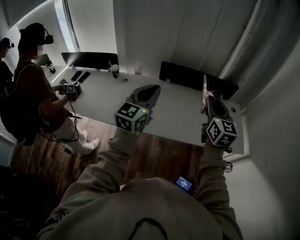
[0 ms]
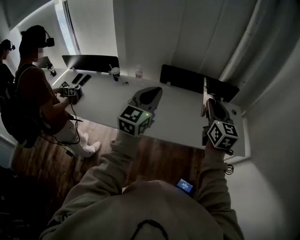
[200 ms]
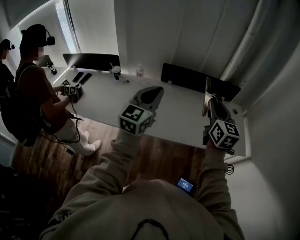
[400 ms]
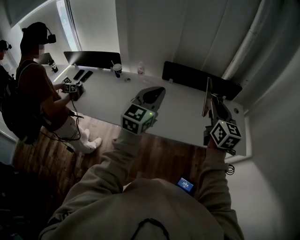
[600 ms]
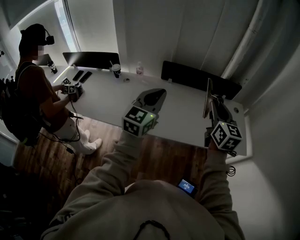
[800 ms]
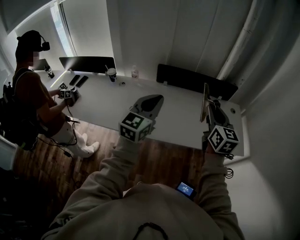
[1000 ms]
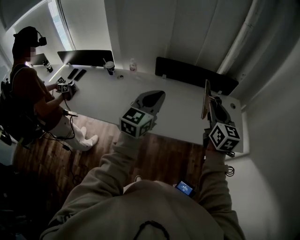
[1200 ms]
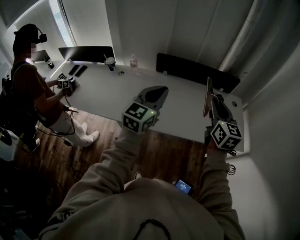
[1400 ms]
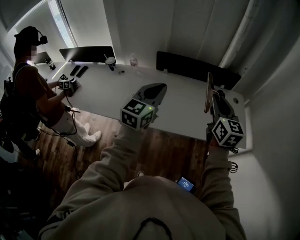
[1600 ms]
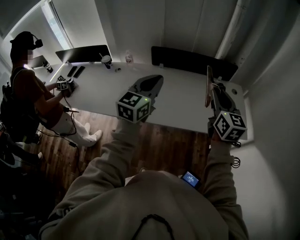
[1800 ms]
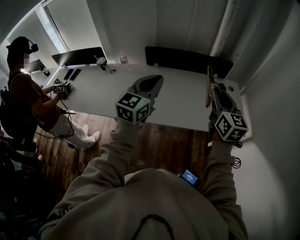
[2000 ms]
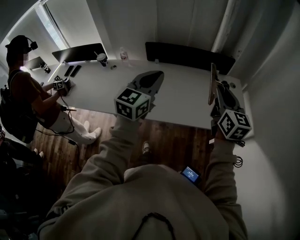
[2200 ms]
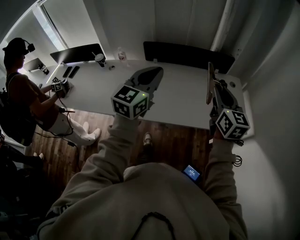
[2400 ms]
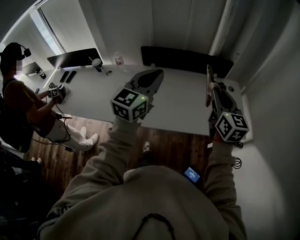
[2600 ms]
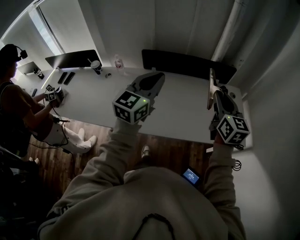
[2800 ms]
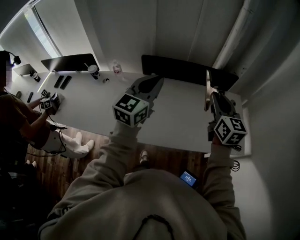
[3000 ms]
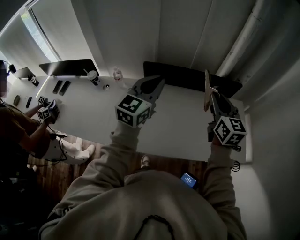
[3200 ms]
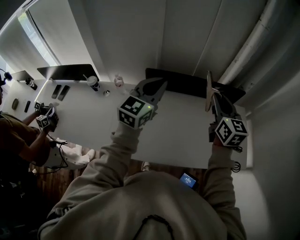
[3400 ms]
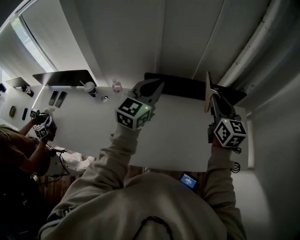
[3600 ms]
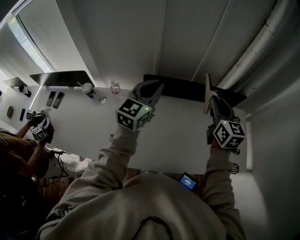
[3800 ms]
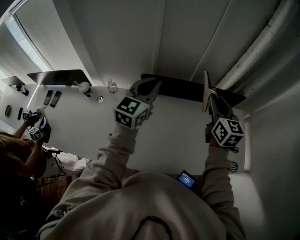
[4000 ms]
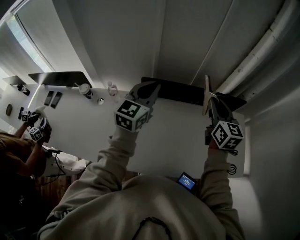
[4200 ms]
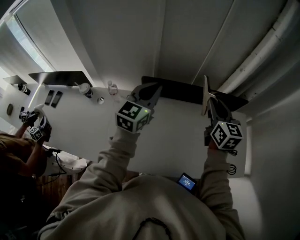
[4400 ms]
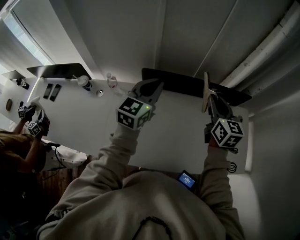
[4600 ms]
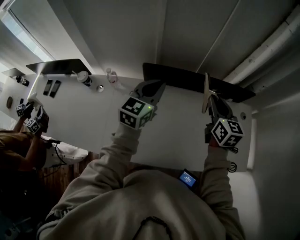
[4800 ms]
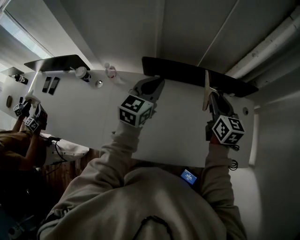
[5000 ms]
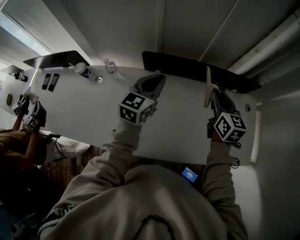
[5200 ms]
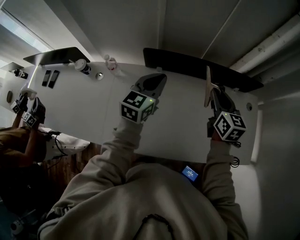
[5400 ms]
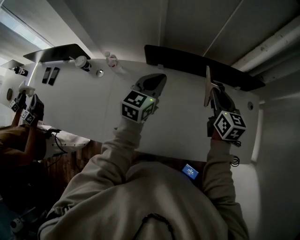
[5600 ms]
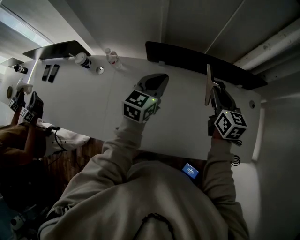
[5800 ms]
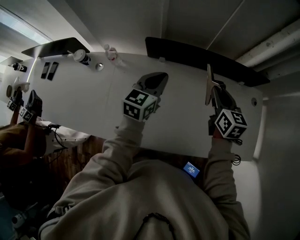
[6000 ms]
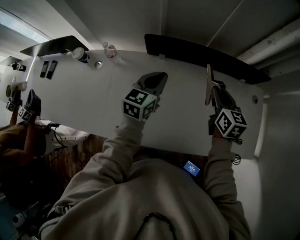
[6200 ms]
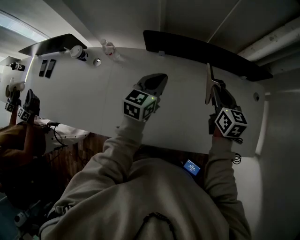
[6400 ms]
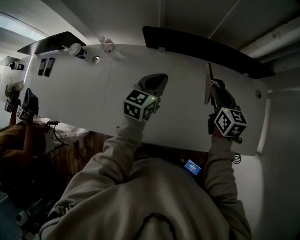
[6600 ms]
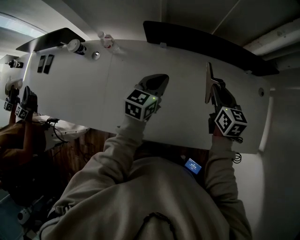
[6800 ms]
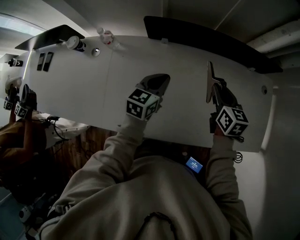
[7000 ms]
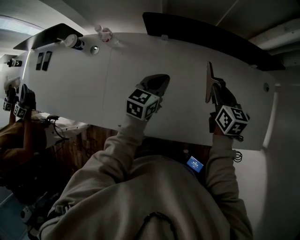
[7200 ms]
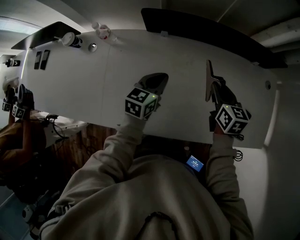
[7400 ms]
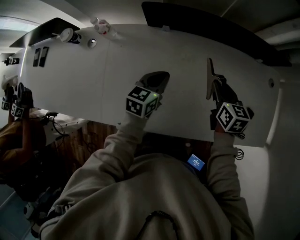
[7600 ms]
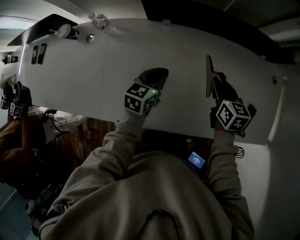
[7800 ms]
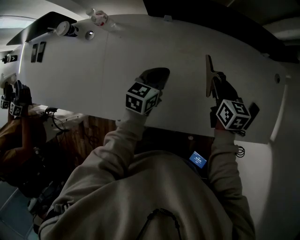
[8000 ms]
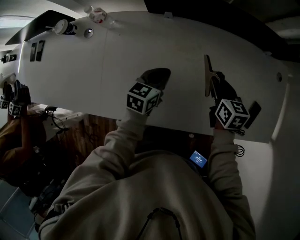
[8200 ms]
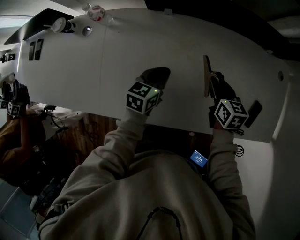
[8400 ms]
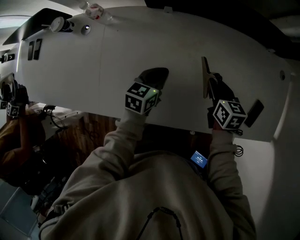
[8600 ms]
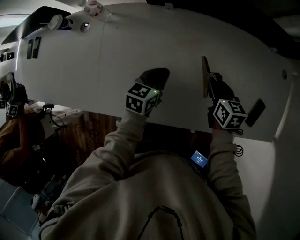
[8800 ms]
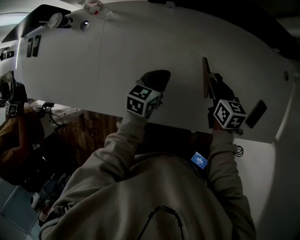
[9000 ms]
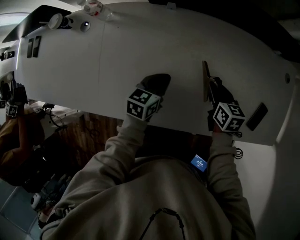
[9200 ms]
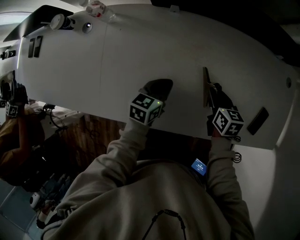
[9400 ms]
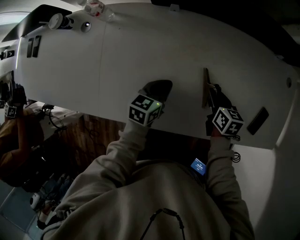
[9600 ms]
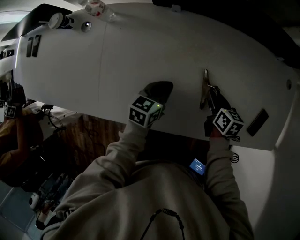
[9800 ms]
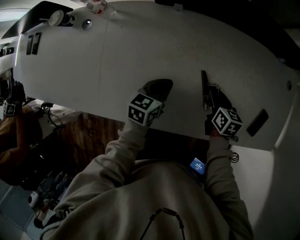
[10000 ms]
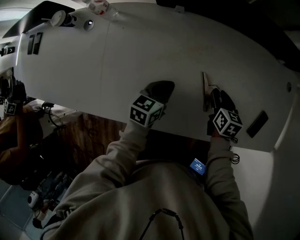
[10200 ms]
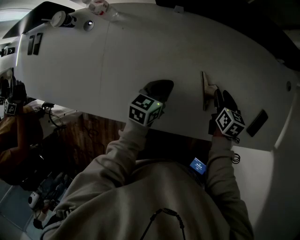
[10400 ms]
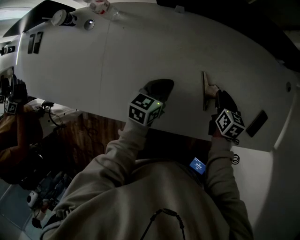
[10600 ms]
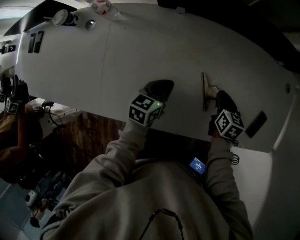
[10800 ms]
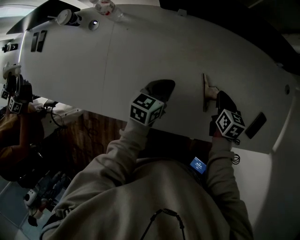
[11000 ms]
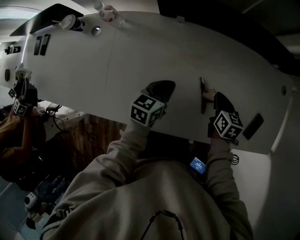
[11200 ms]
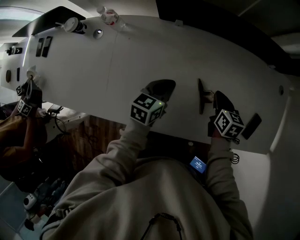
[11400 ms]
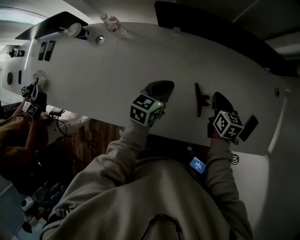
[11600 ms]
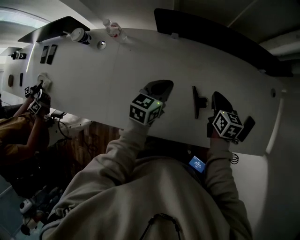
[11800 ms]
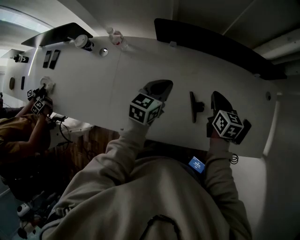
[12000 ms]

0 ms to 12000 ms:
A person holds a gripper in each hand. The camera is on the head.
0 ms to 1600 ms: The grippers both shift to the right by some 10 cm.
1600 ms to 3000 ms: The two grippers go roughly 15 cm forward.
3000 ms to 4400 ms: Both grippers travel together forward and to the left, some 25 cm.
4400 ms to 6000 ms: The two grippers go approximately 15 cm downward.
6000 ms to 7600 ms: The two grippers go approximately 15 cm downward.
7600 ms to 9000 ms: Both grippers move downward, about 10 cm.
9000 ms to 10400 ms: The right gripper changes place by some 5 cm.
10400 ms to 12000 ms: The two grippers go some 15 cm upward. The right gripper closes its fingers.

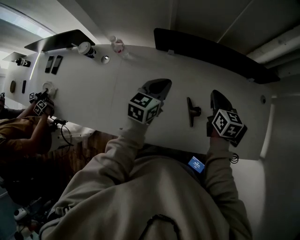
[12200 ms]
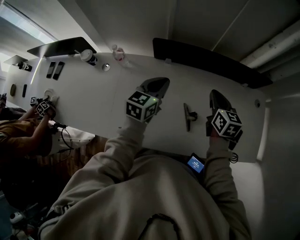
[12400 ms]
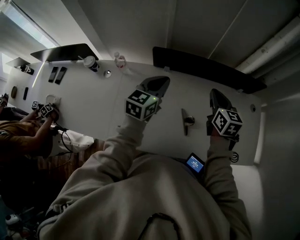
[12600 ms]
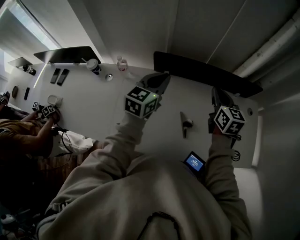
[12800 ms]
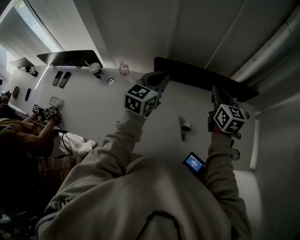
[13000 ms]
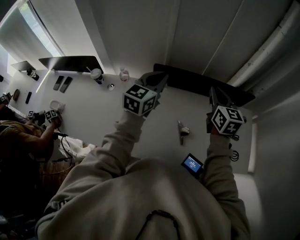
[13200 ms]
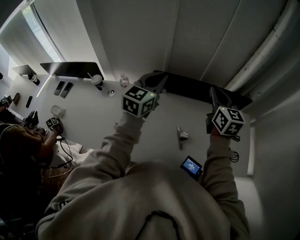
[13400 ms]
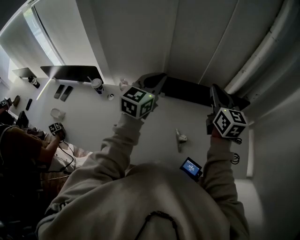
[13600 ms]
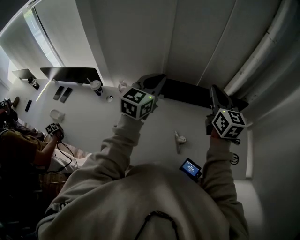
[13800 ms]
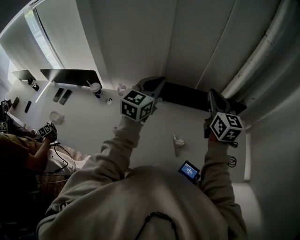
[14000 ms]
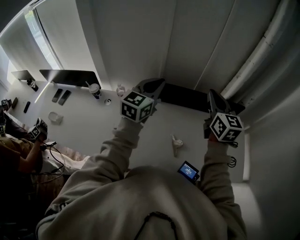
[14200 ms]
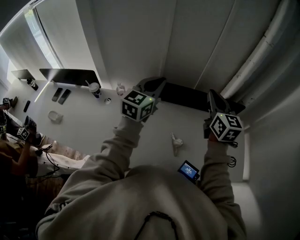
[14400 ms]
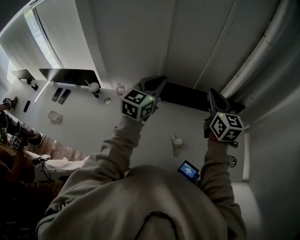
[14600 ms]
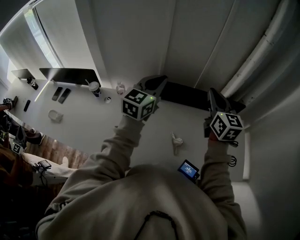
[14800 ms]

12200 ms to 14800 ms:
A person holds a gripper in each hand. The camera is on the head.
12200 ms to 13400 ms: Both grippers move upward, about 25 cm. The left gripper rotates some 20 degrees; the right gripper swivels some 30 degrees.
13400 ms to 14800 ms: The right gripper goes about 5 cm upward.

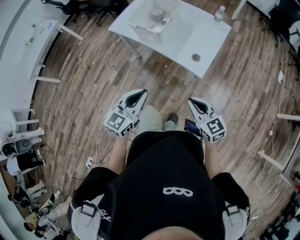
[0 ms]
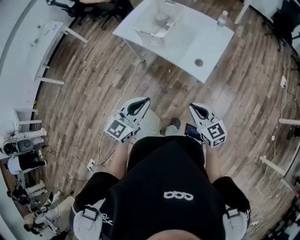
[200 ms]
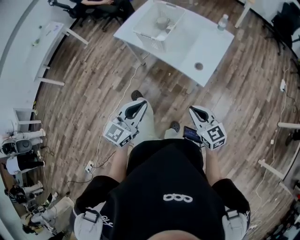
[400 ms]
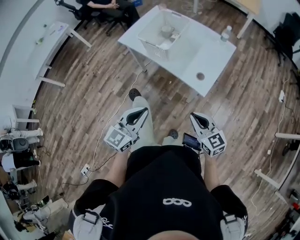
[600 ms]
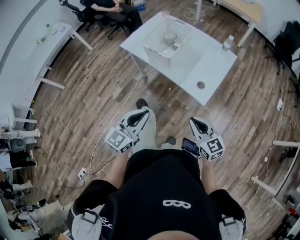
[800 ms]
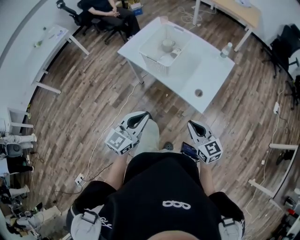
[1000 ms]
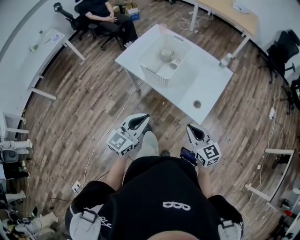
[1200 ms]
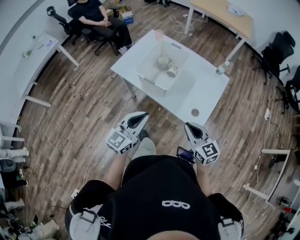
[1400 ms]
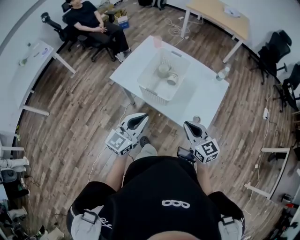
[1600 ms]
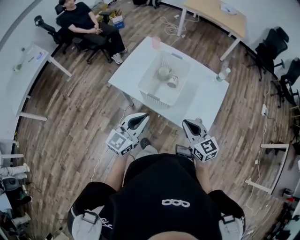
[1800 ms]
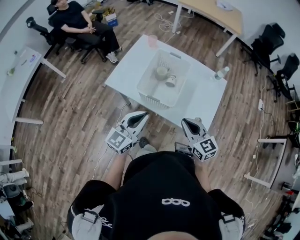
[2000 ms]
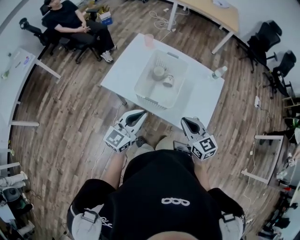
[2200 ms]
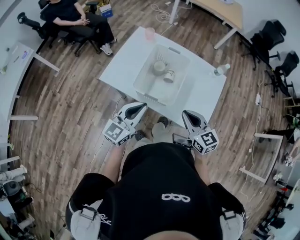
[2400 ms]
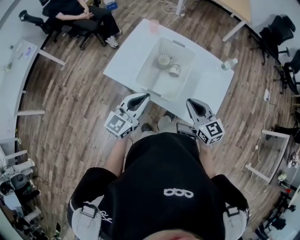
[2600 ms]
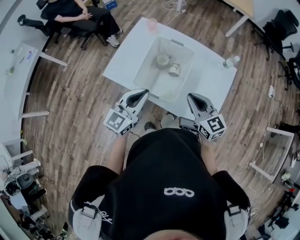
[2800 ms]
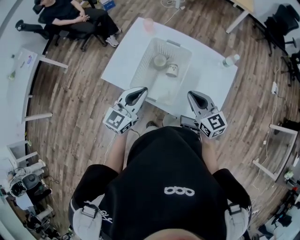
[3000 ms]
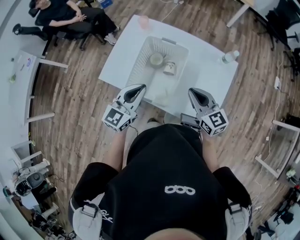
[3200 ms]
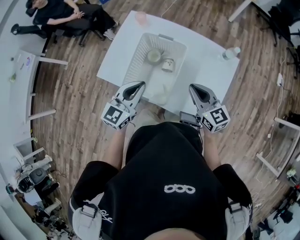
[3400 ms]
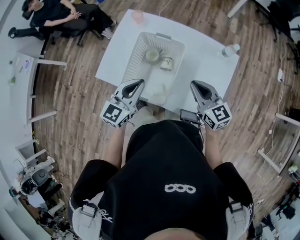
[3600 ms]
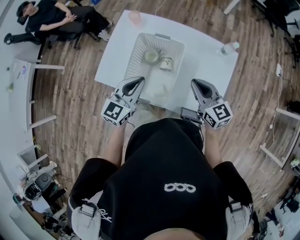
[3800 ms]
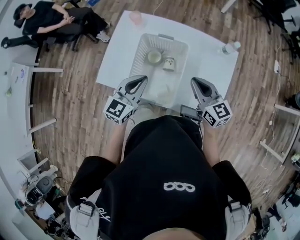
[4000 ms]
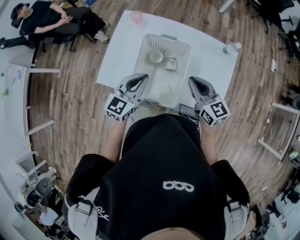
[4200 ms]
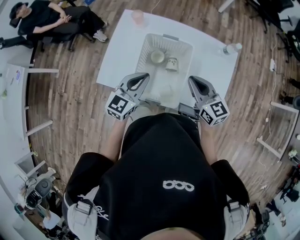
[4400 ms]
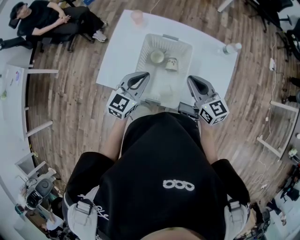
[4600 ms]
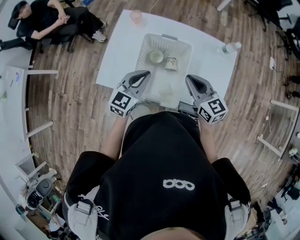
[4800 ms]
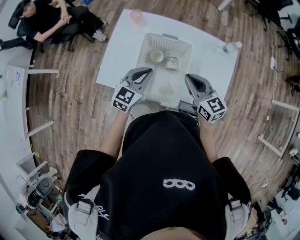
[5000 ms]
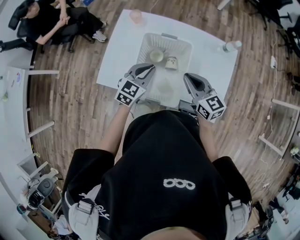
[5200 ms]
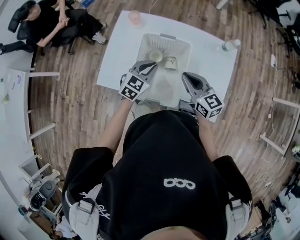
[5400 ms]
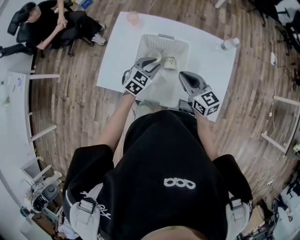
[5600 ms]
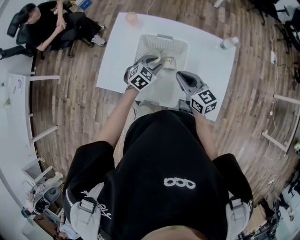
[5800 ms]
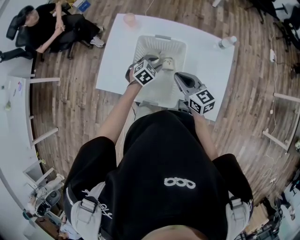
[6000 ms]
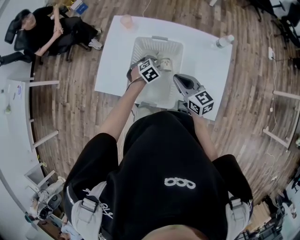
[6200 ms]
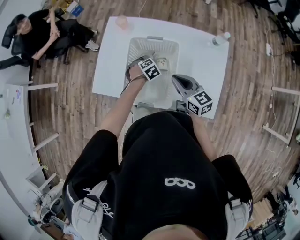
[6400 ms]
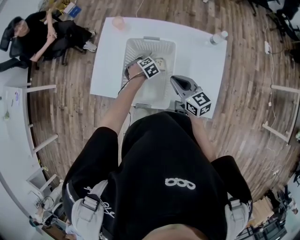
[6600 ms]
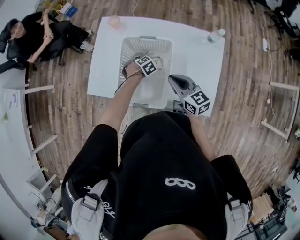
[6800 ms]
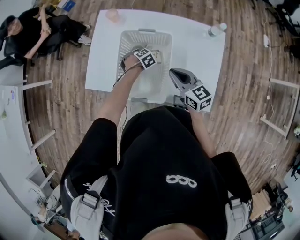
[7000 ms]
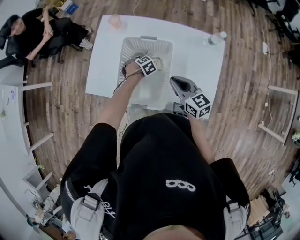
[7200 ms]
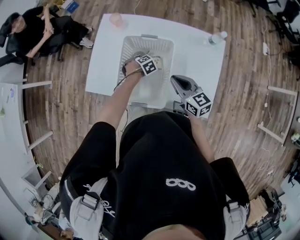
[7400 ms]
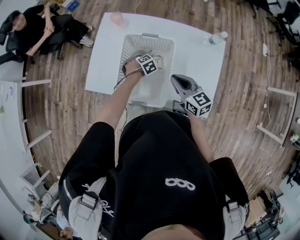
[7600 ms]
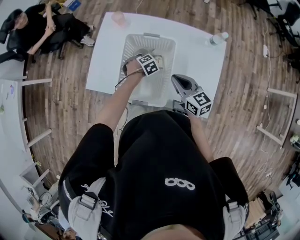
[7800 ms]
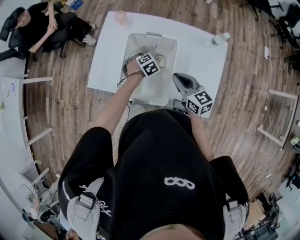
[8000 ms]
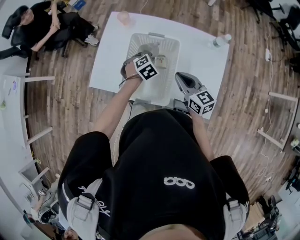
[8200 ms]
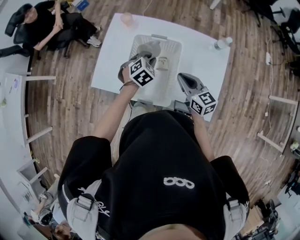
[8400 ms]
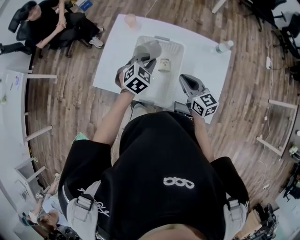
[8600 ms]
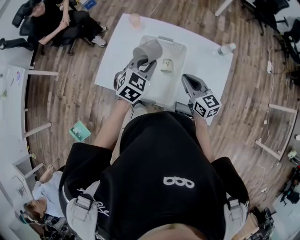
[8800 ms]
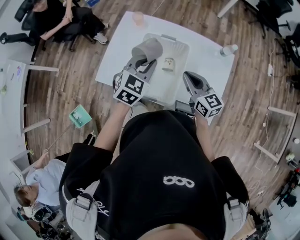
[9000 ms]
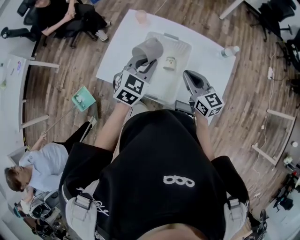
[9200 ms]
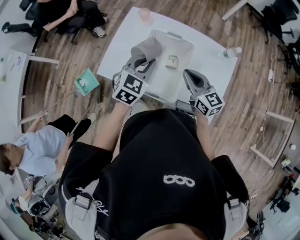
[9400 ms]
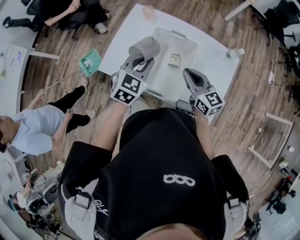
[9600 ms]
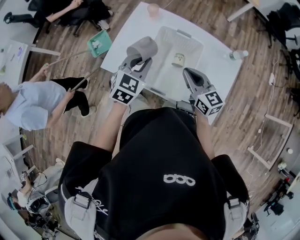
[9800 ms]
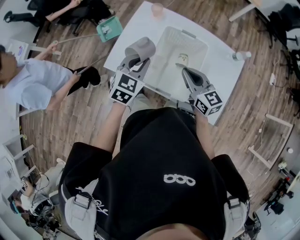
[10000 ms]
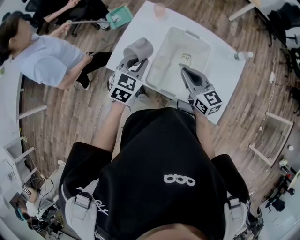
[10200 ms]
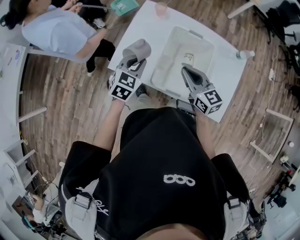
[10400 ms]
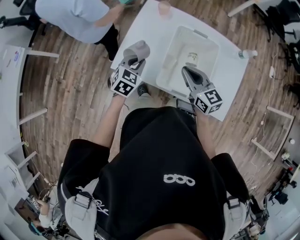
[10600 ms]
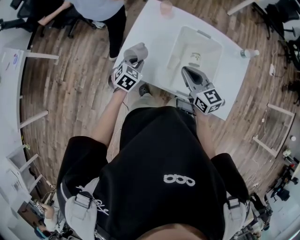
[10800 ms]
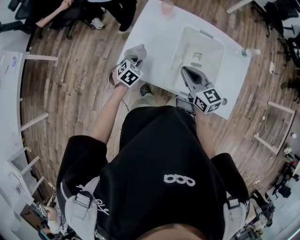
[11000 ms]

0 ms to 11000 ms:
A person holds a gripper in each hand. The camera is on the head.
0 ms to 1600 ms: Both grippers travel together forward, roughly 25 cm.
1600 ms to 3200 ms: Both grippers travel together forward, approximately 25 cm.
3200 ms to 4800 ms: The left gripper heads forward and downward, covering approximately 10 cm; the right gripper is displaced forward and to the left by about 10 cm.
4800 ms to 6200 ms: The right gripper shifts by some 5 cm, while the left gripper heads downward and forward, covering about 20 cm, points its fingers roughly 40 degrees further downward, and opens its fingers.
6200 ms to 7800 ms: The left gripper shifts approximately 5 cm downward, and closes.
7800 ms to 9400 ms: The right gripper goes approximately 5 cm upward; the left gripper shifts approximately 30 cm upward, and angles its fingers upward, by roughly 50 degrees.
9400 ms to 11000 ms: The right gripper is displaced to the left by roughly 20 cm. The left gripper goes about 30 cm to the left and downward, and changes its angle by about 20 degrees.
